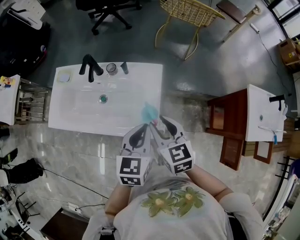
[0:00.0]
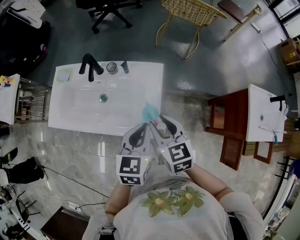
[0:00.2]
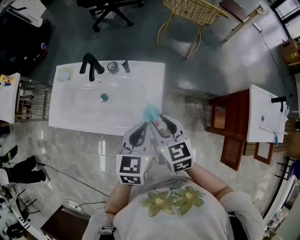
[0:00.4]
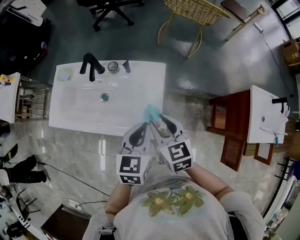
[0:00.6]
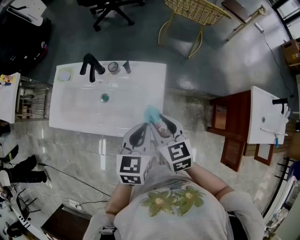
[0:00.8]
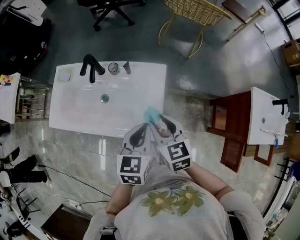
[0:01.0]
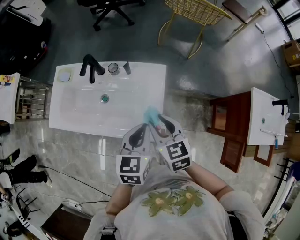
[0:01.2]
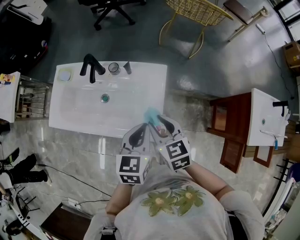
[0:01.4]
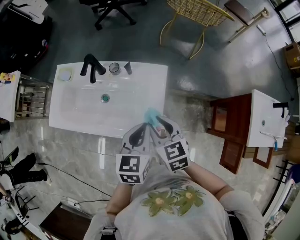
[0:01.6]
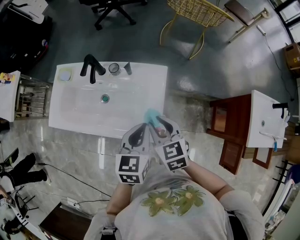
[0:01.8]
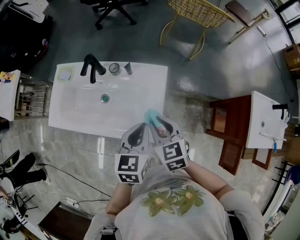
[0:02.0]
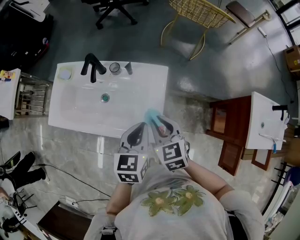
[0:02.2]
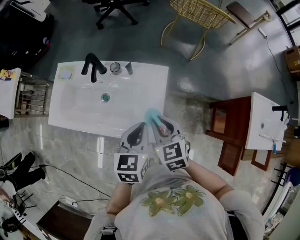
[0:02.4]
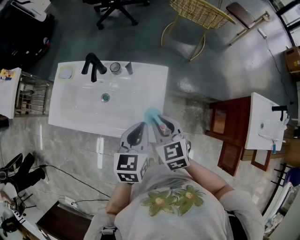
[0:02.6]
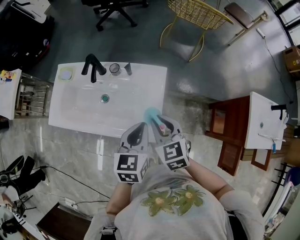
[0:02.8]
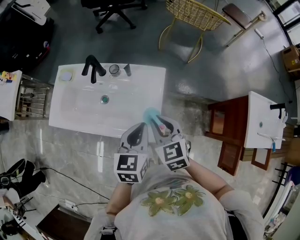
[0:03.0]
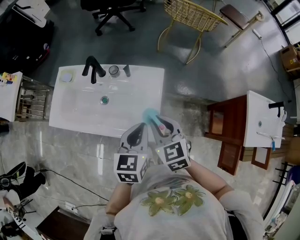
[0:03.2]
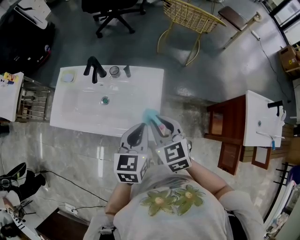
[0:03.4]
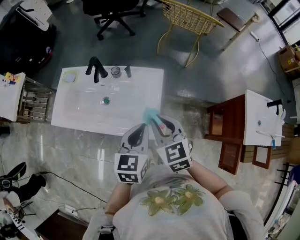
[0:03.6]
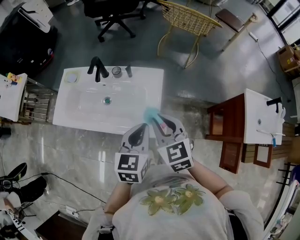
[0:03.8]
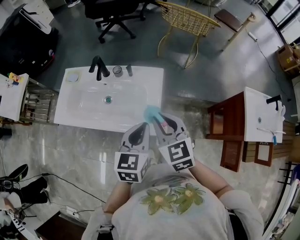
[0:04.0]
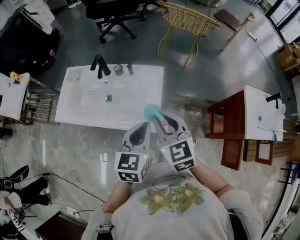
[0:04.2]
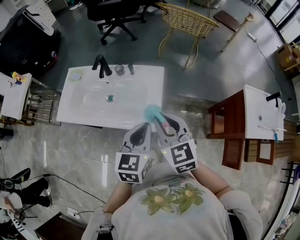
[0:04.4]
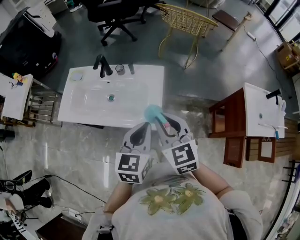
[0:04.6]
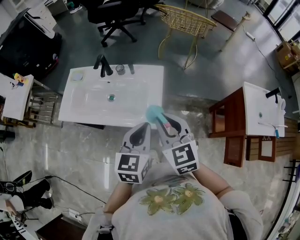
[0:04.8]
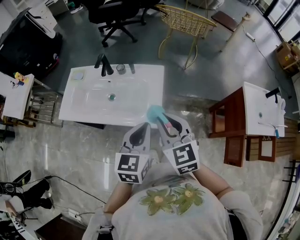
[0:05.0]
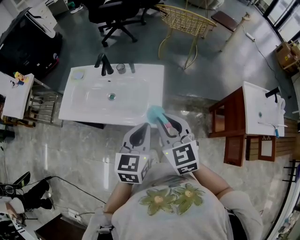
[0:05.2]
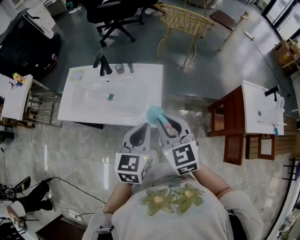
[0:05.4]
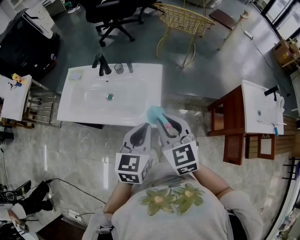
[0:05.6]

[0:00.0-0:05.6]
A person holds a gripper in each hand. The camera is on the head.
0:00.0 to 0:02.8: There are only small adjustments of the grippers.
0:02.8 to 0:04.2: The left gripper moves backward, roughly 5 cm. Meanwhile the right gripper travels upward and backward by roughly 10 cm.
0:04.2 to 0:05.6: The grippers make only small movements.

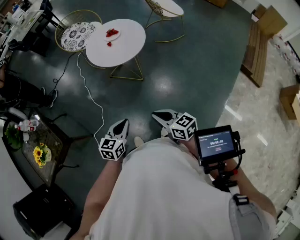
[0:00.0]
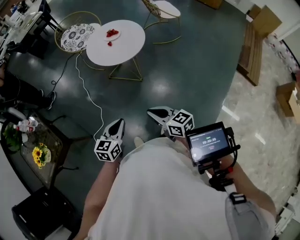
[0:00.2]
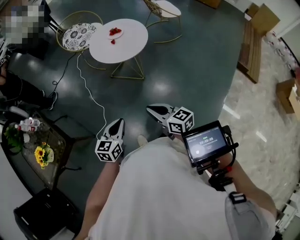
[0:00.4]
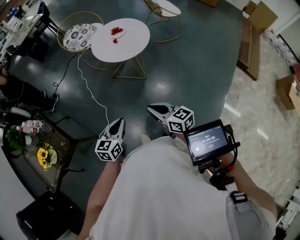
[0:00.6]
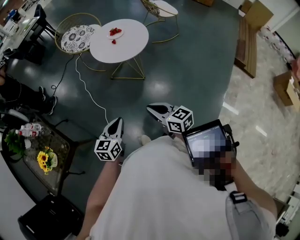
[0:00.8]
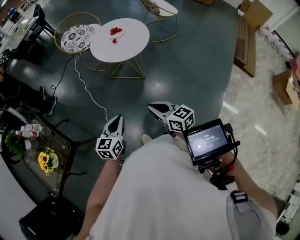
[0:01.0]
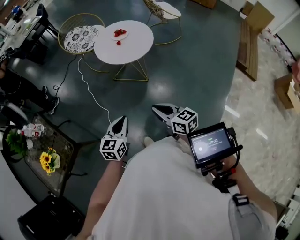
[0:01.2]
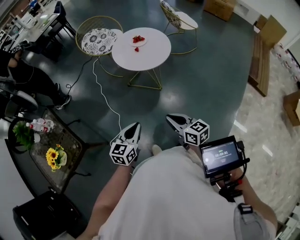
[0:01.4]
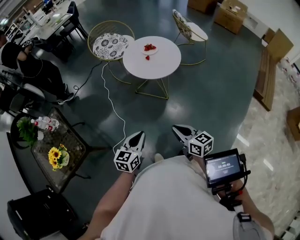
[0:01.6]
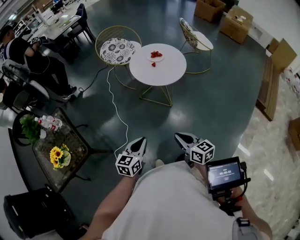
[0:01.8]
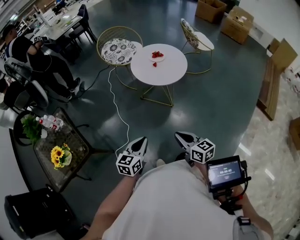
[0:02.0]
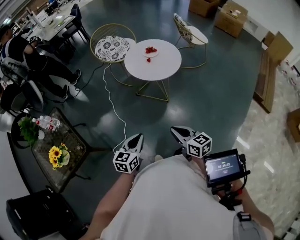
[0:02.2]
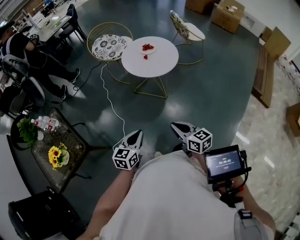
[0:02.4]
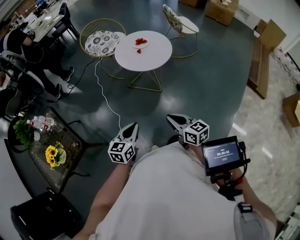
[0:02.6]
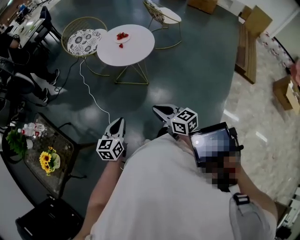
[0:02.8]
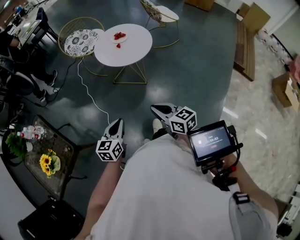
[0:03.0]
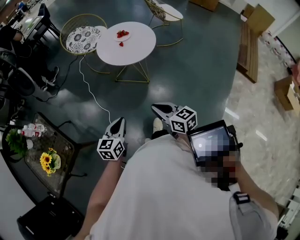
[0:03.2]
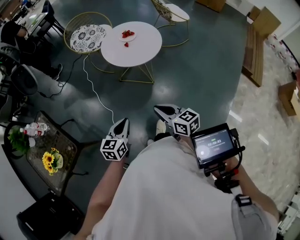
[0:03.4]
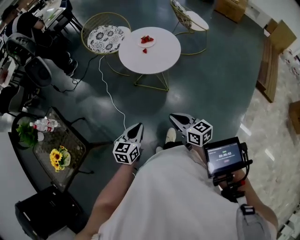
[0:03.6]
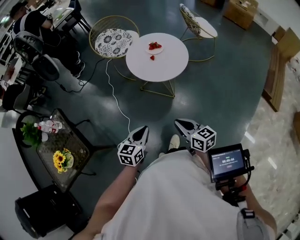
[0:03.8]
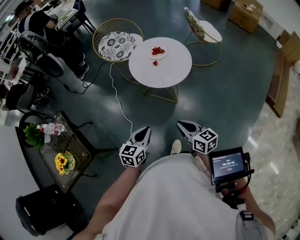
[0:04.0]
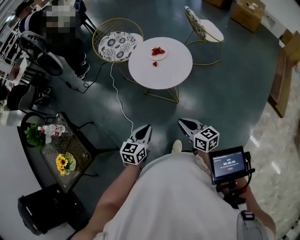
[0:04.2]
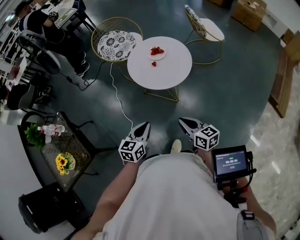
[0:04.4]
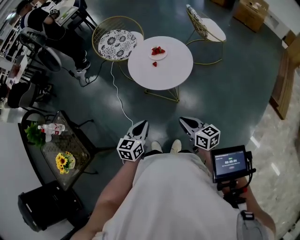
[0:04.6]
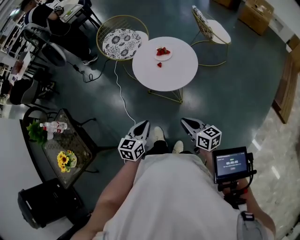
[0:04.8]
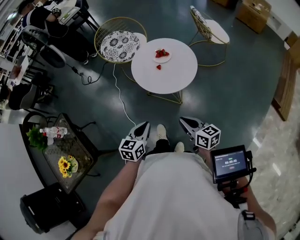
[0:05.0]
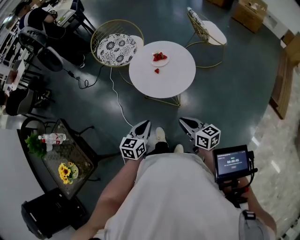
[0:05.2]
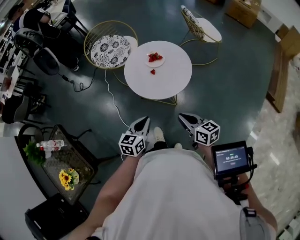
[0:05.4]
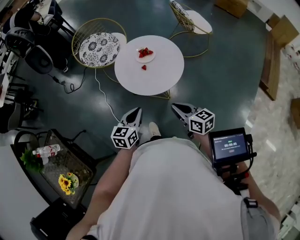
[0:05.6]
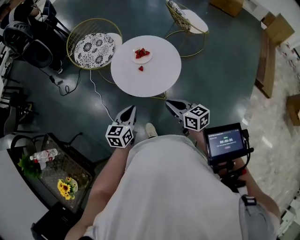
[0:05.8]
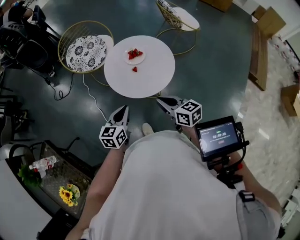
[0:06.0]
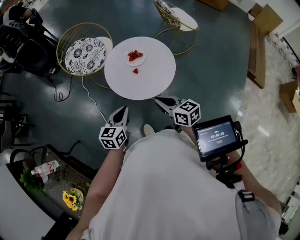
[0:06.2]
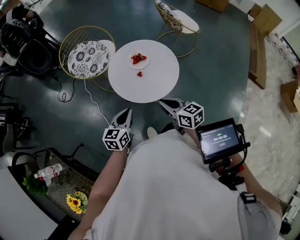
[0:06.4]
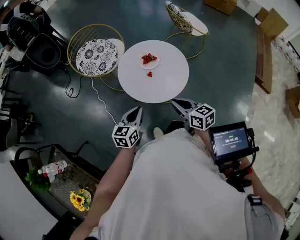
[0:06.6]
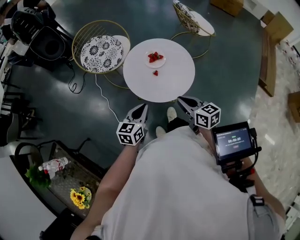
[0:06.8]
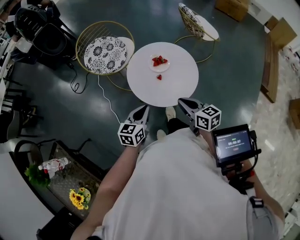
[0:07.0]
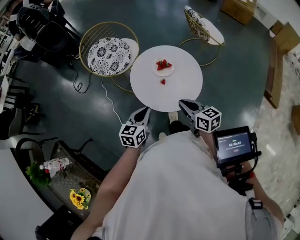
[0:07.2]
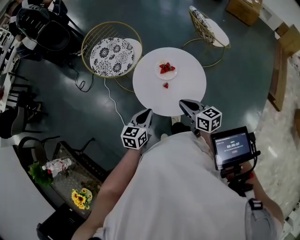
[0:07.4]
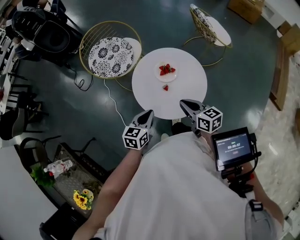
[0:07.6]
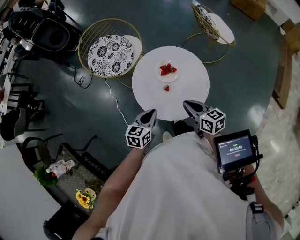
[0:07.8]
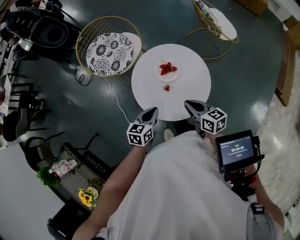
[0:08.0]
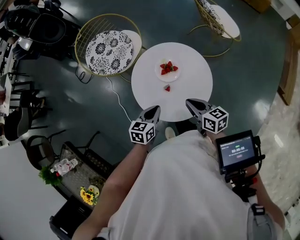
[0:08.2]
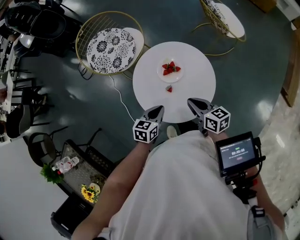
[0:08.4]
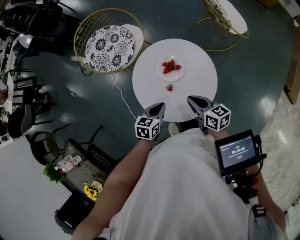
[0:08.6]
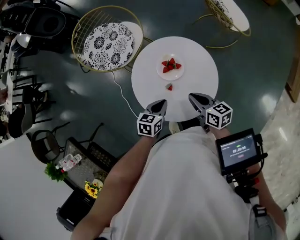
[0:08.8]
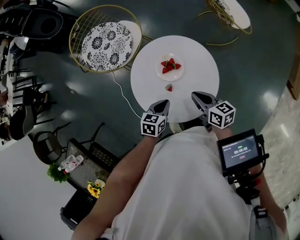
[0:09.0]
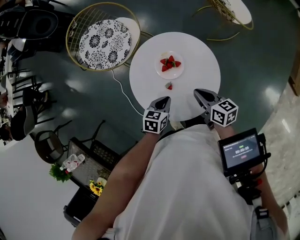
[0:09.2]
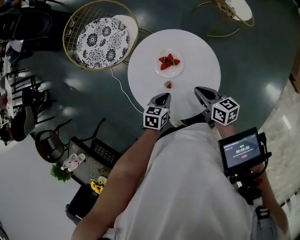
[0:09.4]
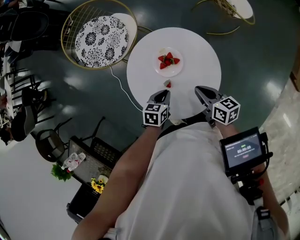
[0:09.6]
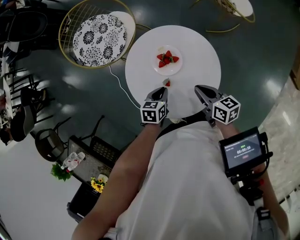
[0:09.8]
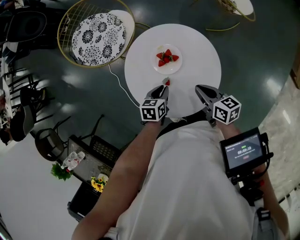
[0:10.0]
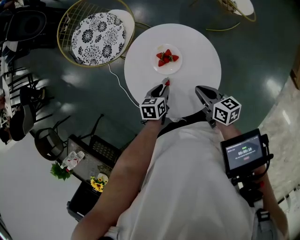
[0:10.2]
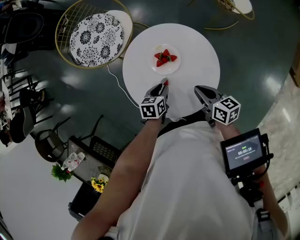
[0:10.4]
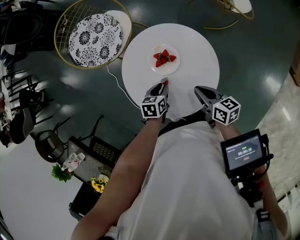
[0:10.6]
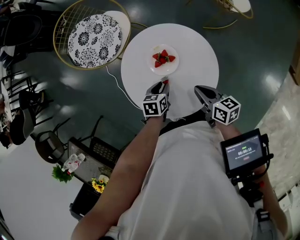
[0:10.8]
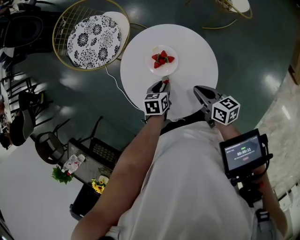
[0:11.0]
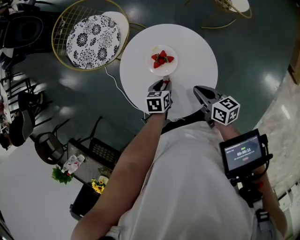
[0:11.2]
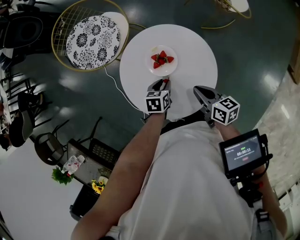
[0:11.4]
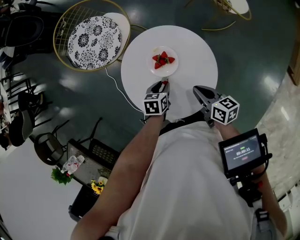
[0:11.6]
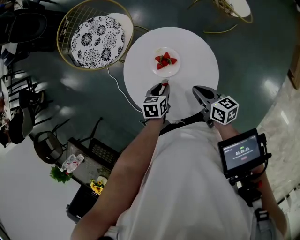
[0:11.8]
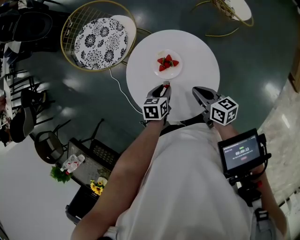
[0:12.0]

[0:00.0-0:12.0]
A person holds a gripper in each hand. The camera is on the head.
0:00.0 to 0:01.6: The two grippers go about 15 cm to the left.
0:01.6 to 0:03.0: The grippers make only small movements.
0:03.0 to 0:04.4: The two grippers go some 15 cm forward.
0:04.4 to 0:06.0: Both grippers move forward, about 20 cm.
0:06.0 to 0:07.6: The two grippers go some 15 cm forward.
0:07.6 to 0:09.0: The left gripper moves downward, forward and to the right, roughly 15 cm, while the right gripper moves forward, downward and to the right, about 15 cm.
0:09.0 to 0:10.4: The left gripper heads downward, covering roughly 5 cm.
0:10.4 to 0:12.0: The grippers make only small movements.

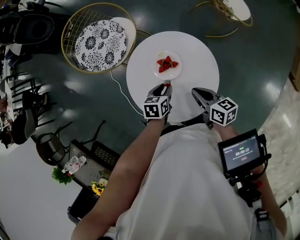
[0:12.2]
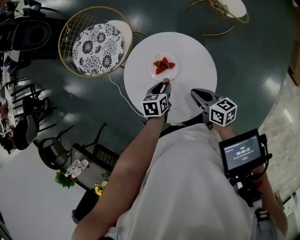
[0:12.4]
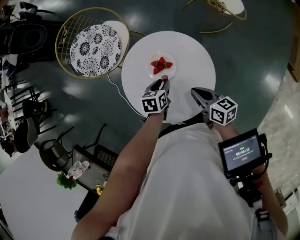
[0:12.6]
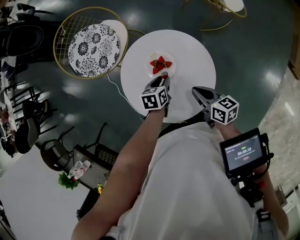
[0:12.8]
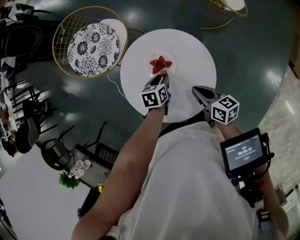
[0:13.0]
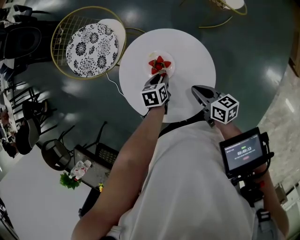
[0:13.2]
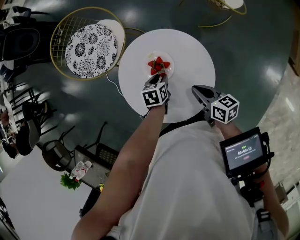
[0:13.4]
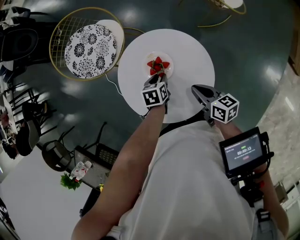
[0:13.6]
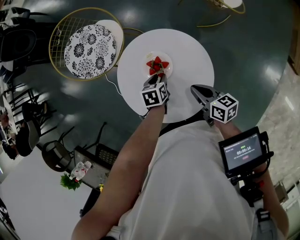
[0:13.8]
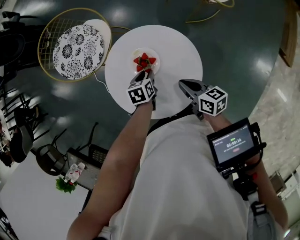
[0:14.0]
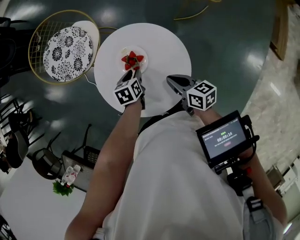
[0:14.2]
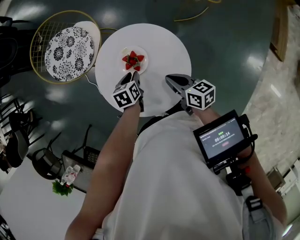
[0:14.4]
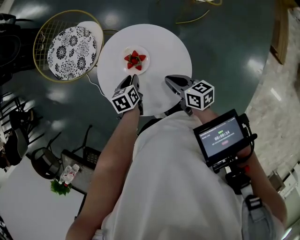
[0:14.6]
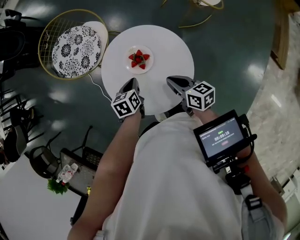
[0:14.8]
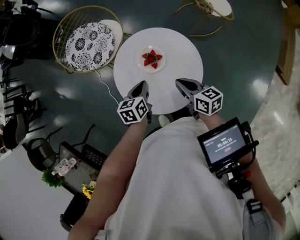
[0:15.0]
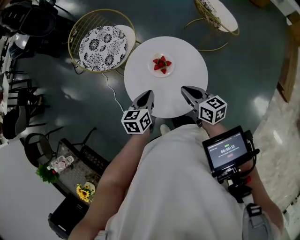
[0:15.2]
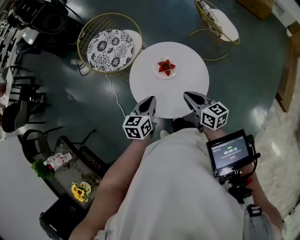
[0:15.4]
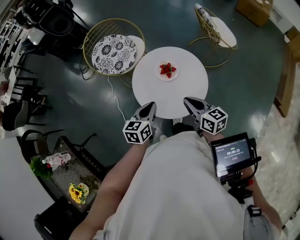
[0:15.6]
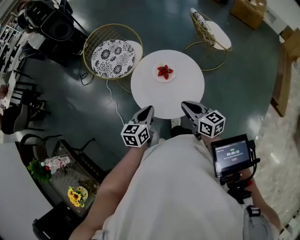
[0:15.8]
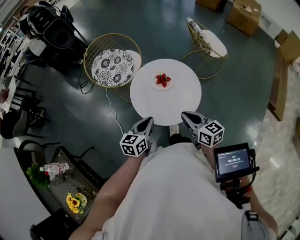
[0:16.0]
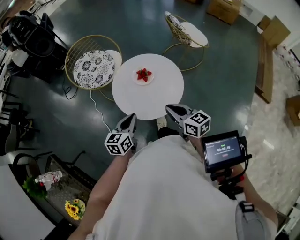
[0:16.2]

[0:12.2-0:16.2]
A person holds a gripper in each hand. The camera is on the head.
0:12.2 to 0:13.6: The left gripper ends up roughly 5 cm from where it was.
0:13.6 to 0:14.8: The left gripper changes place by about 5 cm, and closes up.
0:14.8 to 0:16.2: The grippers both shift backward, upward and to the left by roughly 25 cm. The right gripper rotates roughly 20 degrees, while the left gripper changes its angle by some 30 degrees.

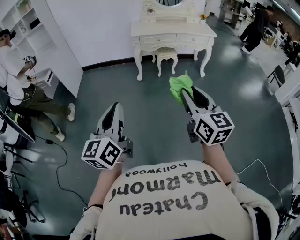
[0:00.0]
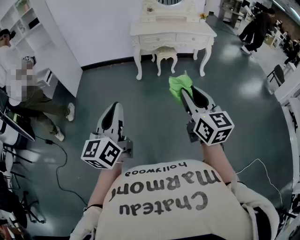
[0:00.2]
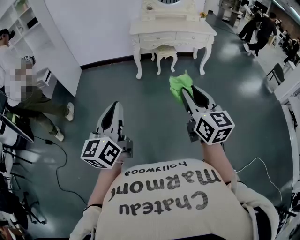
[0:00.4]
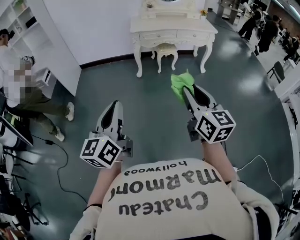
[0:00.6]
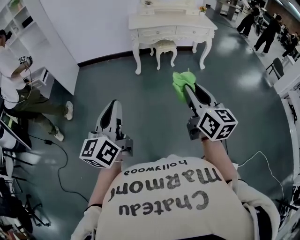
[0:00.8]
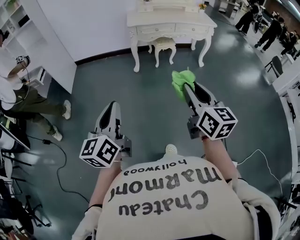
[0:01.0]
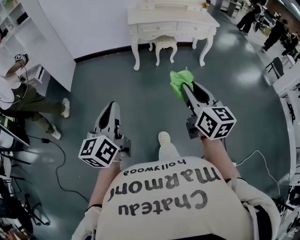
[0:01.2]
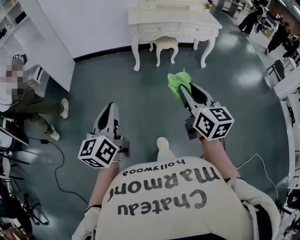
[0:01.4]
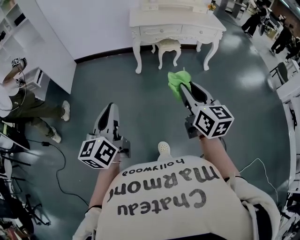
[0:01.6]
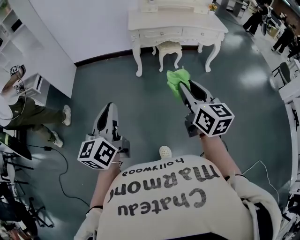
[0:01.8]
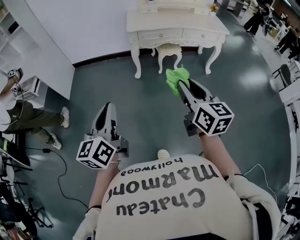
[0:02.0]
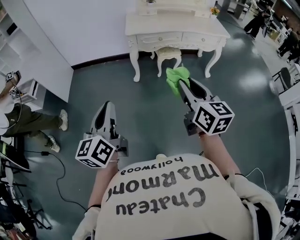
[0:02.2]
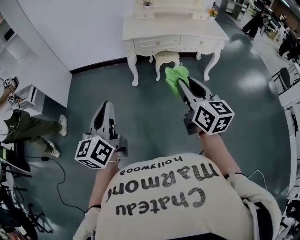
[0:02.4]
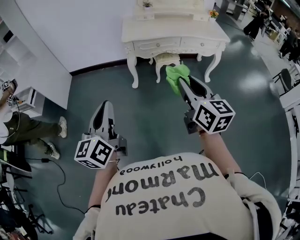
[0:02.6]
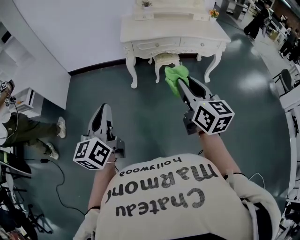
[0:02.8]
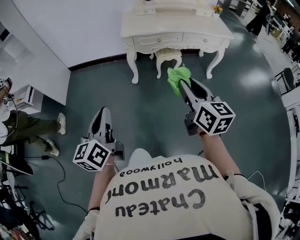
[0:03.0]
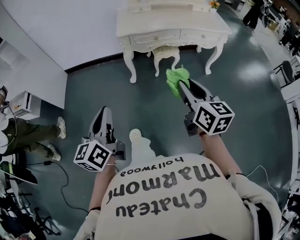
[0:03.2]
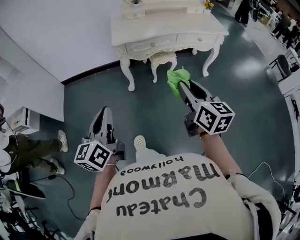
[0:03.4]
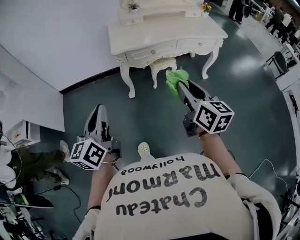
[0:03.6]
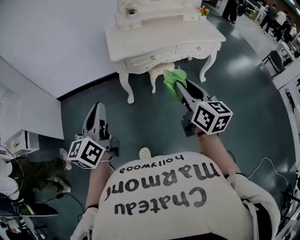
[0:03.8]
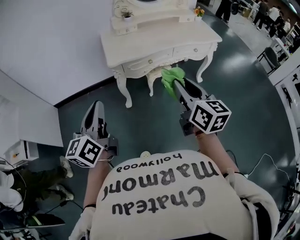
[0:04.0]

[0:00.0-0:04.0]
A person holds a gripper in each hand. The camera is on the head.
0:00.0 to 0:01.4: The left gripper goes roughly 15 cm forward, to the left and downward, while the right gripper goes approximately 15 cm forward, downward and to the left.
0:01.4 to 0:02.6: Both grippers travel together forward, about 25 cm.
0:02.6 to 0:04.0: The two grippers go about 25 cm forward.
